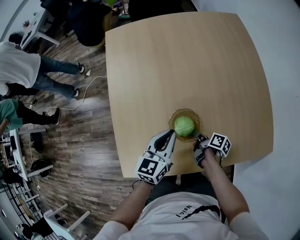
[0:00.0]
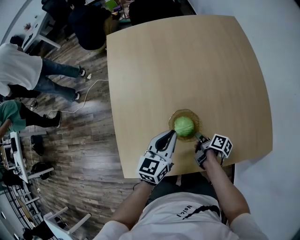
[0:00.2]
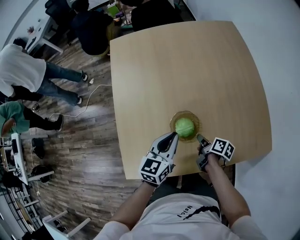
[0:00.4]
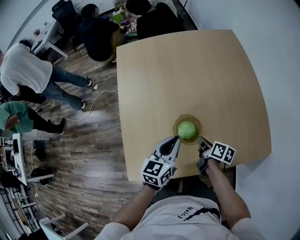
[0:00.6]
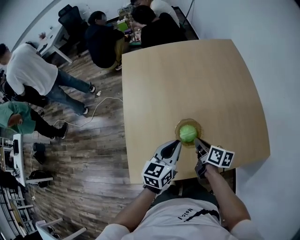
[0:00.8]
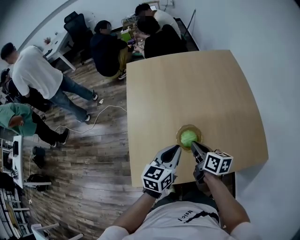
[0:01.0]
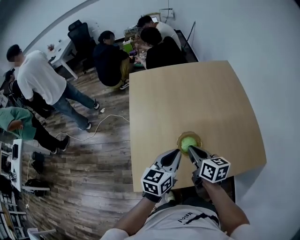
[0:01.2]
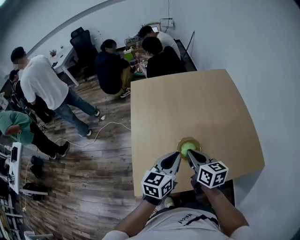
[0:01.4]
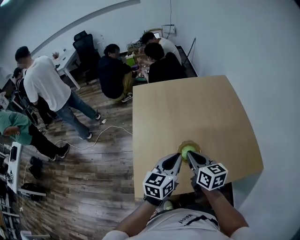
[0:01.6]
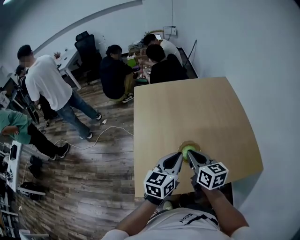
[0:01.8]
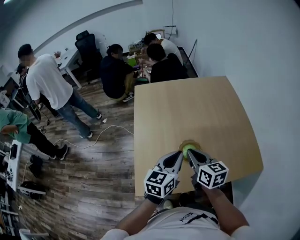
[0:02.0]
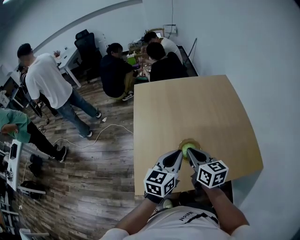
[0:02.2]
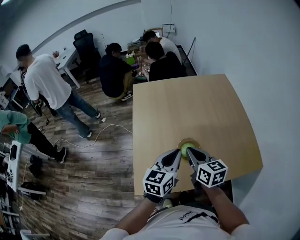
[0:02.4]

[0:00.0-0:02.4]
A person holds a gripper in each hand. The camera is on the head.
0:00.0 to 0:01.2: The left gripper heads upward, covering some 10 cm.
0:01.2 to 0:02.4: The left gripper travels upward by roughly 5 cm.

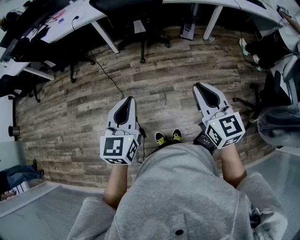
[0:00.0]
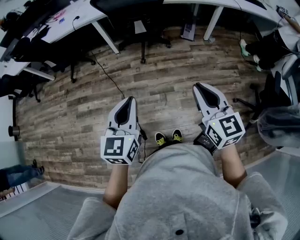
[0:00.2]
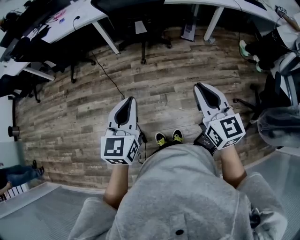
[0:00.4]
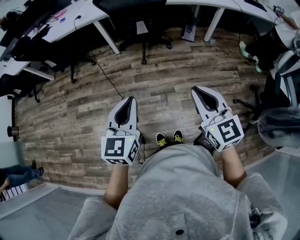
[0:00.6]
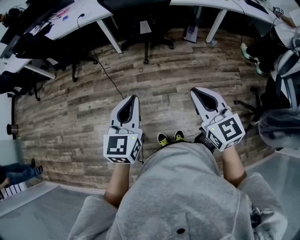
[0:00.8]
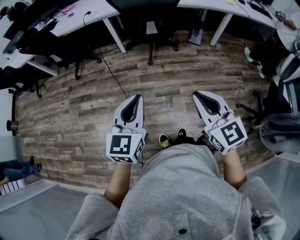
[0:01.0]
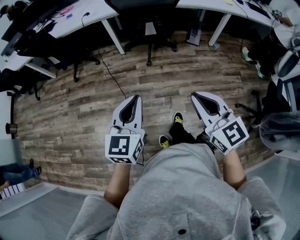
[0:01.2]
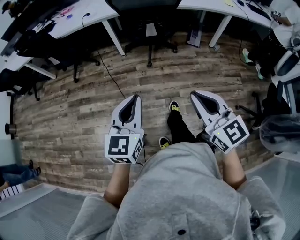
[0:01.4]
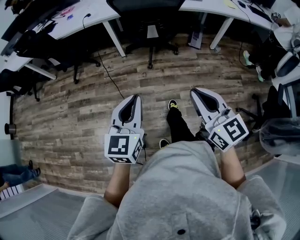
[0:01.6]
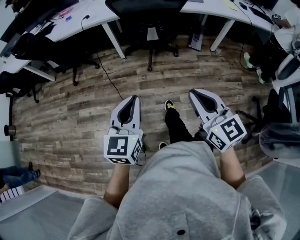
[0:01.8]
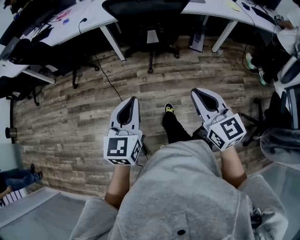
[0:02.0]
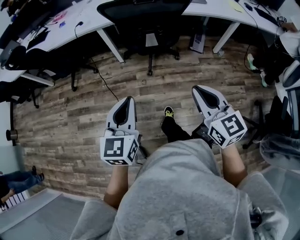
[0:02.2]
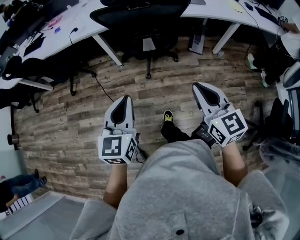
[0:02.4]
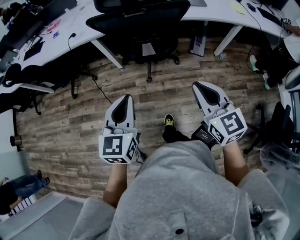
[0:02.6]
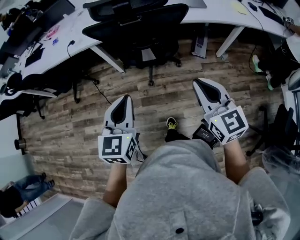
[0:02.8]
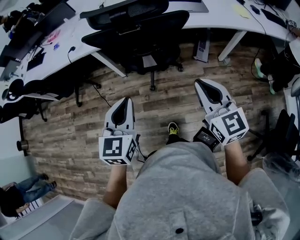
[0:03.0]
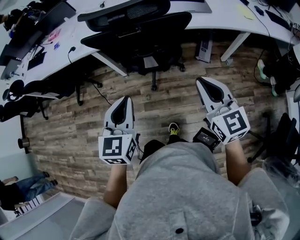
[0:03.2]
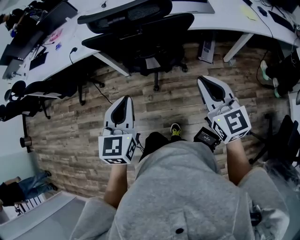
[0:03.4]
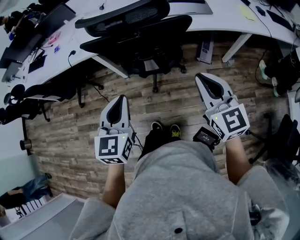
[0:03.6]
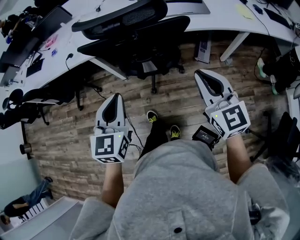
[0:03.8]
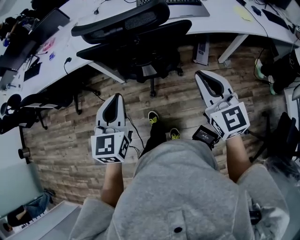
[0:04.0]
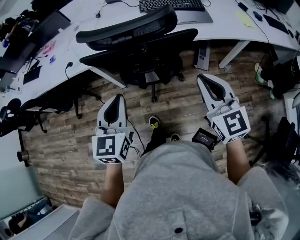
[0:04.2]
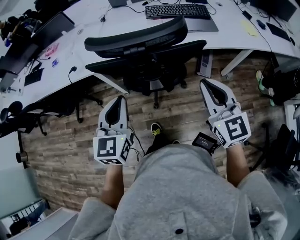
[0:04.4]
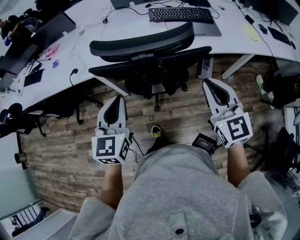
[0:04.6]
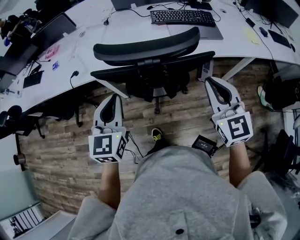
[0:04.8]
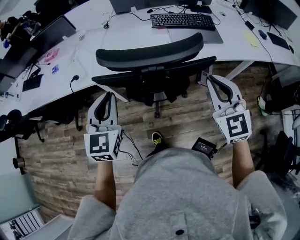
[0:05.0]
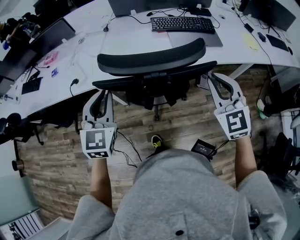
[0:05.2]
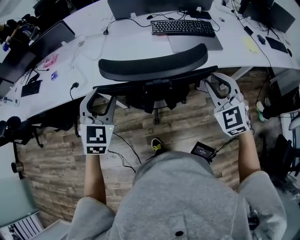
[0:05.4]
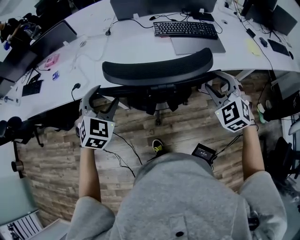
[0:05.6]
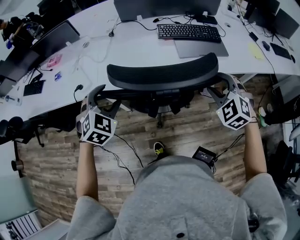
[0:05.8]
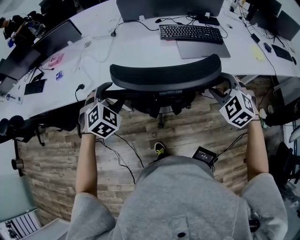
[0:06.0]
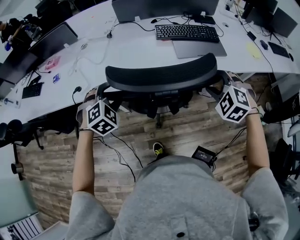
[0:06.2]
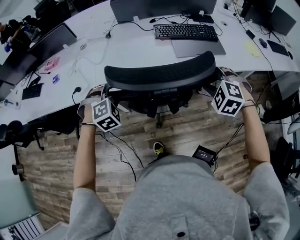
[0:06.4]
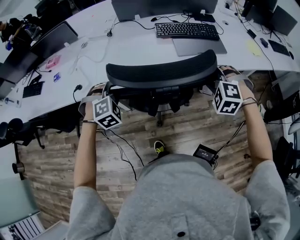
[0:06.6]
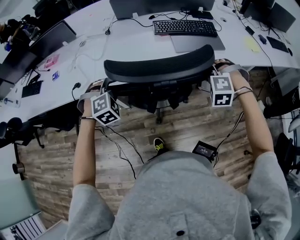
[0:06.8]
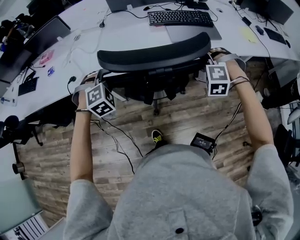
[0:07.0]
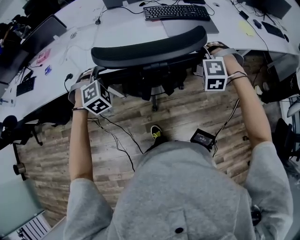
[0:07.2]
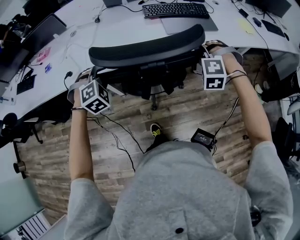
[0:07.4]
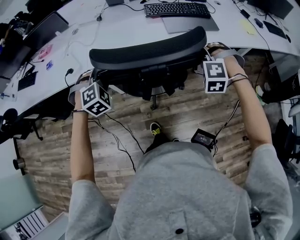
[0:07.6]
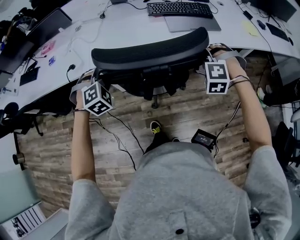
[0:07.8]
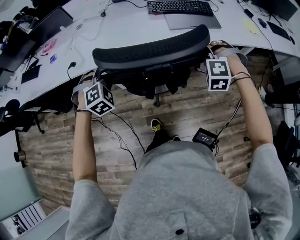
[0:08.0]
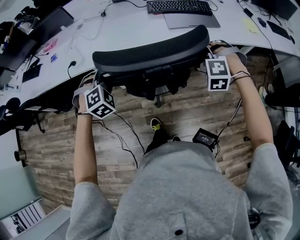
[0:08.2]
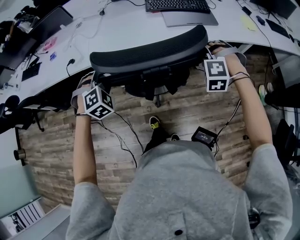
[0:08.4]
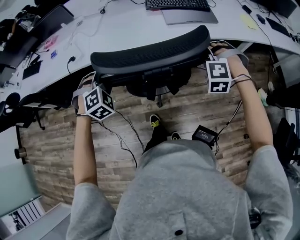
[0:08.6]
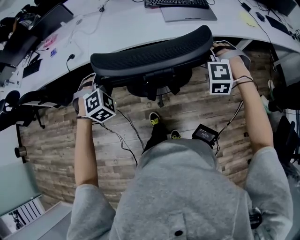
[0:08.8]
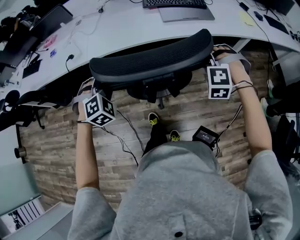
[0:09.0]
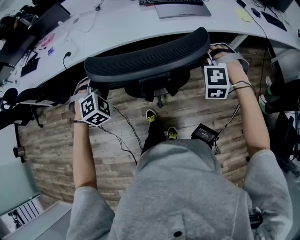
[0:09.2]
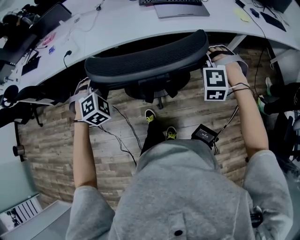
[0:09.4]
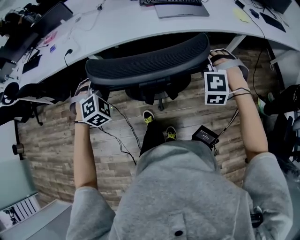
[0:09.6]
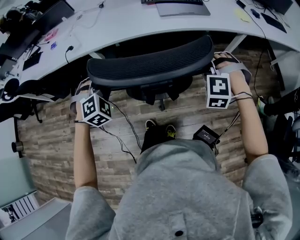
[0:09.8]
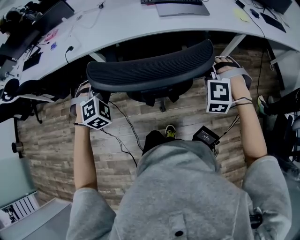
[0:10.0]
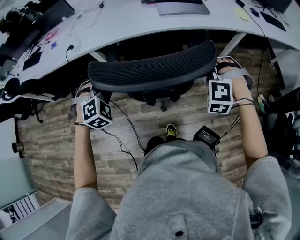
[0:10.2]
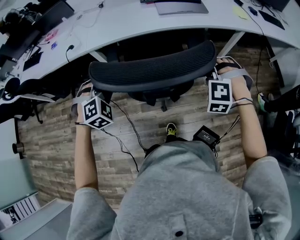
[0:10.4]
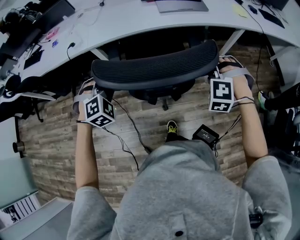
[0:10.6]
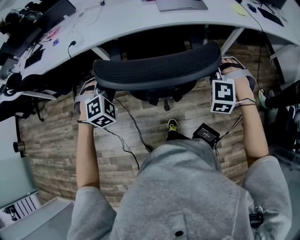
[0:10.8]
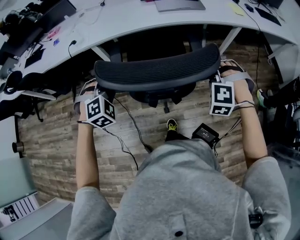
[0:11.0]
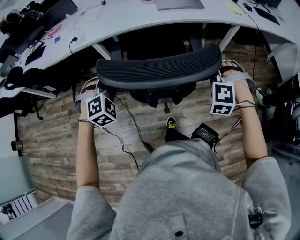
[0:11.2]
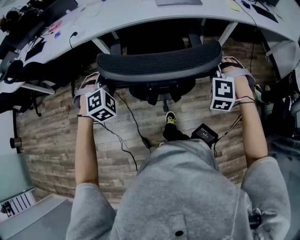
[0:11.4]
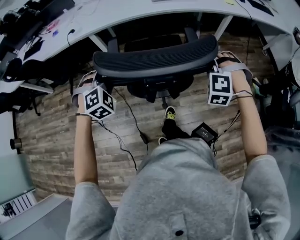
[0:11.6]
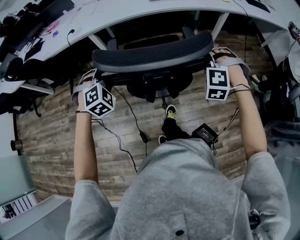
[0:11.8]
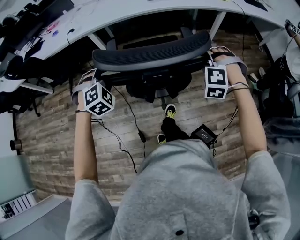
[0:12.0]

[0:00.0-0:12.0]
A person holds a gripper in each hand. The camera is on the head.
0:00.0 to 0:01.6: The left gripper shifts approximately 5 cm to the left. The right gripper shifts roughly 10 cm to the left.
0:01.6 to 0:03.0: The right gripper goes approximately 35 cm forward and to the right, while the left gripper moves forward, roughly 35 cm.
0:03.0 to 0:04.4: Both grippers travel together forward, roughly 15 cm.
0:04.4 to 0:06.0: The right gripper moves forward, approximately 15 cm, tilts its fingers roughly 30 degrees downward, and opens its fingers, while the left gripper heads forward and to the left, covering roughly 20 cm, twists approximately 50 degrees clockwise, seen from behind, and opens its fingers.
0:06.0 to 0:07.6: The right gripper is displaced downward by some 5 cm, swivels roughly 40 degrees, and closes up, while the left gripper closes up.
0:07.6 to 0:09.0: Both grippers move backward and to the right, about 15 cm.
0:09.0 to 0:10.4: The grippers both shift backward by some 10 cm.
0:10.4 to 0:12.0: The grippers both shift backward by roughly 20 cm.

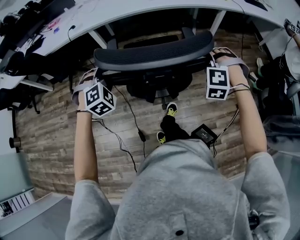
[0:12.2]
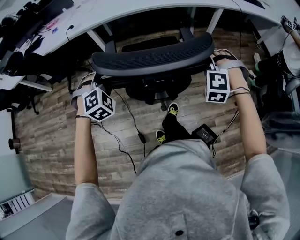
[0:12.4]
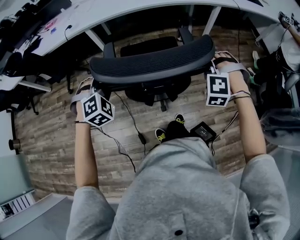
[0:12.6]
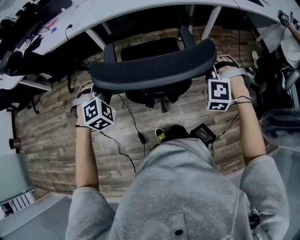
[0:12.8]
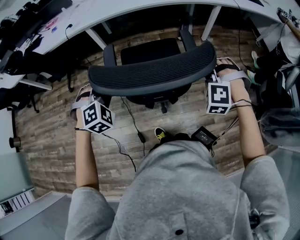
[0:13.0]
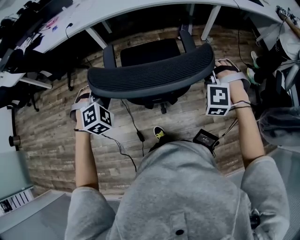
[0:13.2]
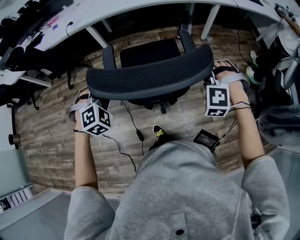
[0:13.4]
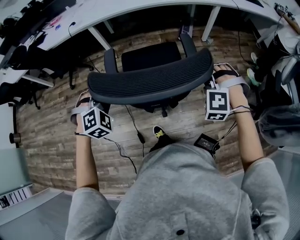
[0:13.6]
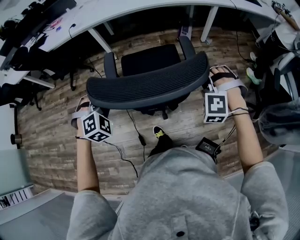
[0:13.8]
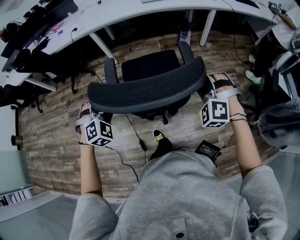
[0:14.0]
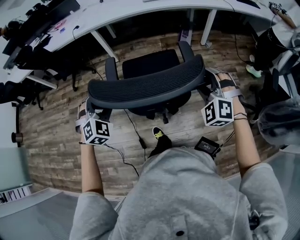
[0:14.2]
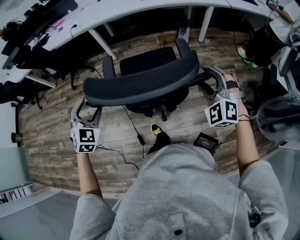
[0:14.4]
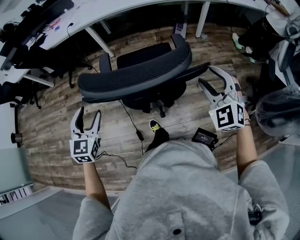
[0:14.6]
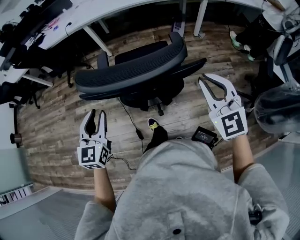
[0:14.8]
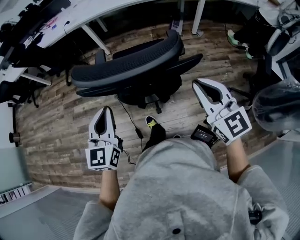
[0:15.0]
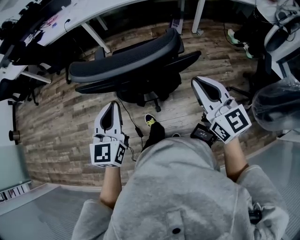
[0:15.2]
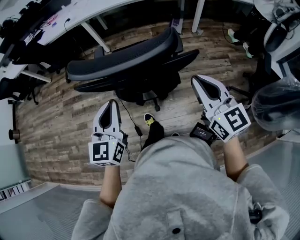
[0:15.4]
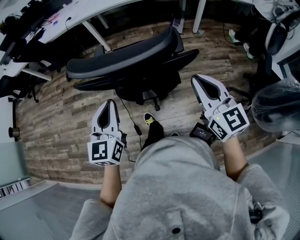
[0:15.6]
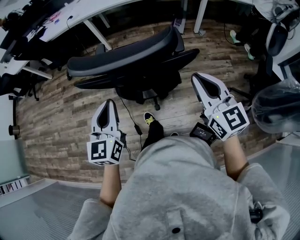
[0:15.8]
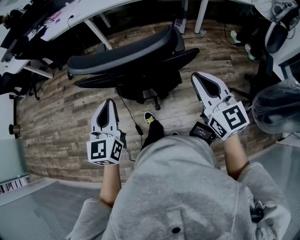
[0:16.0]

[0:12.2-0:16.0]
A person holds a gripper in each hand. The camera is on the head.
0:12.2 to 0:13.4: Both grippers move backward, about 15 cm.
0:13.4 to 0:14.8: The right gripper heads backward and upward, covering some 20 cm, tips its fingers upward by roughly 30 degrees, and opens and closes again; the left gripper travels backward by about 20 cm, rotates around the line of its fingers by some 60 degrees, counterclockwise from behind, and opens and closes again.
0:14.8 to 0:16.0: The left gripper goes approximately 10 cm to the right, and closes up, while the right gripper turns by approximately 30 degrees.

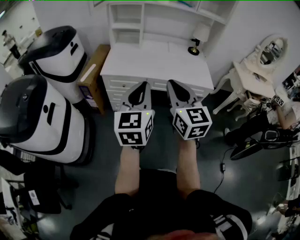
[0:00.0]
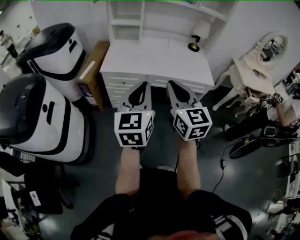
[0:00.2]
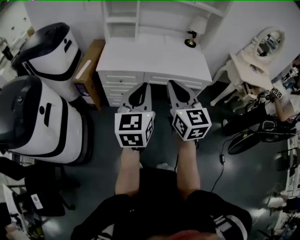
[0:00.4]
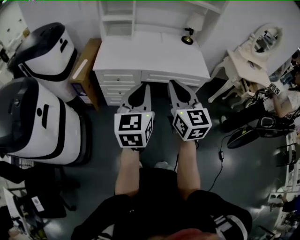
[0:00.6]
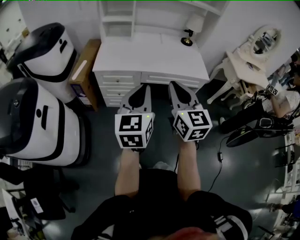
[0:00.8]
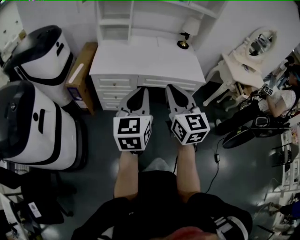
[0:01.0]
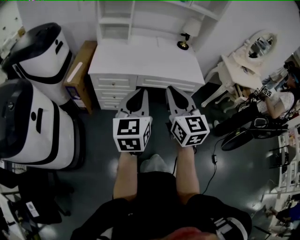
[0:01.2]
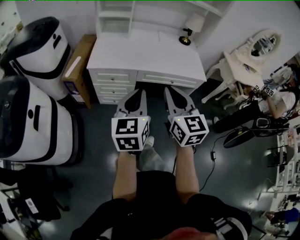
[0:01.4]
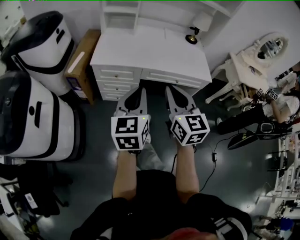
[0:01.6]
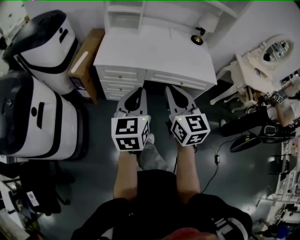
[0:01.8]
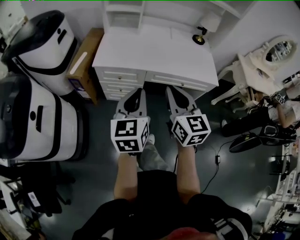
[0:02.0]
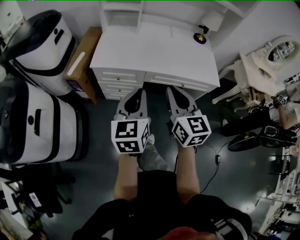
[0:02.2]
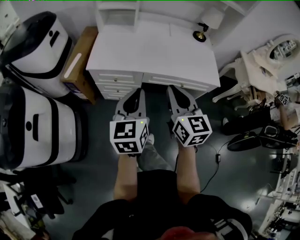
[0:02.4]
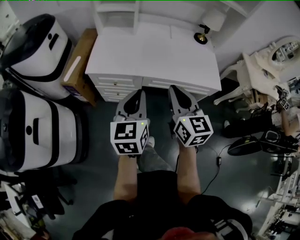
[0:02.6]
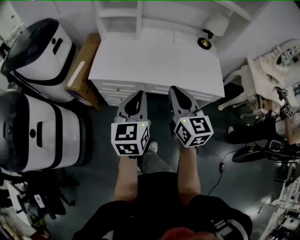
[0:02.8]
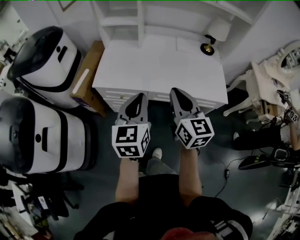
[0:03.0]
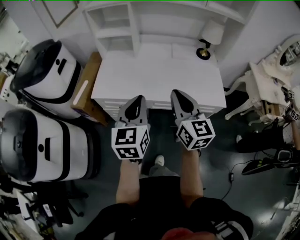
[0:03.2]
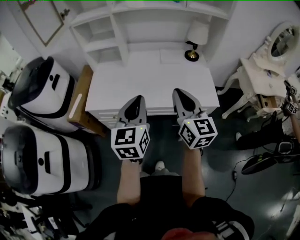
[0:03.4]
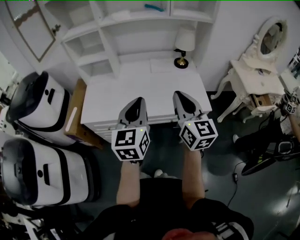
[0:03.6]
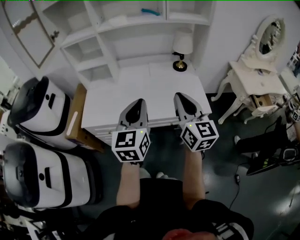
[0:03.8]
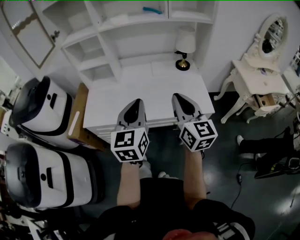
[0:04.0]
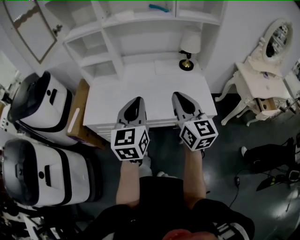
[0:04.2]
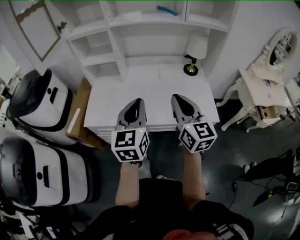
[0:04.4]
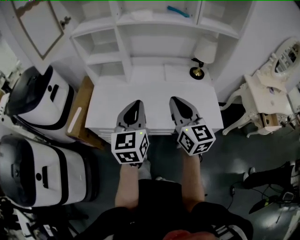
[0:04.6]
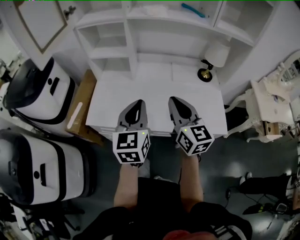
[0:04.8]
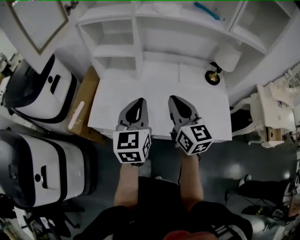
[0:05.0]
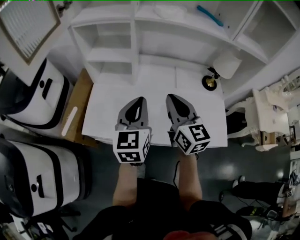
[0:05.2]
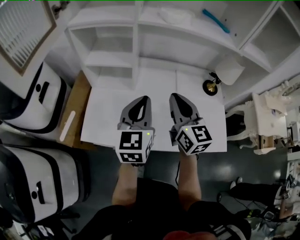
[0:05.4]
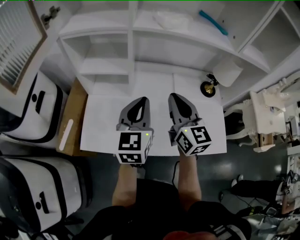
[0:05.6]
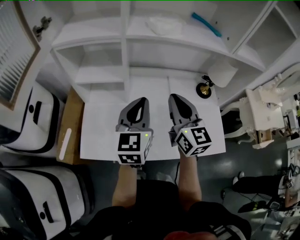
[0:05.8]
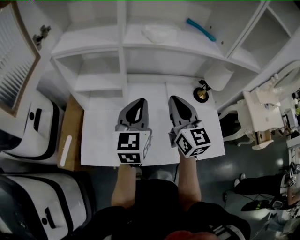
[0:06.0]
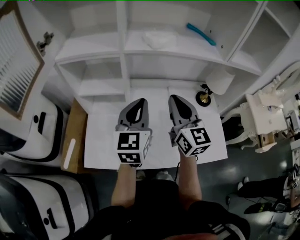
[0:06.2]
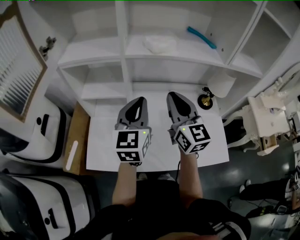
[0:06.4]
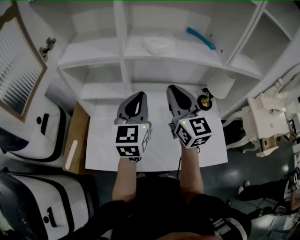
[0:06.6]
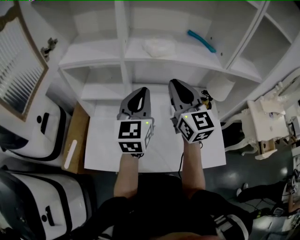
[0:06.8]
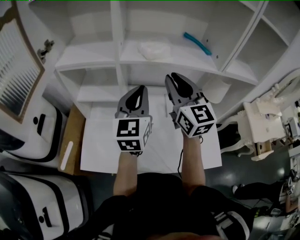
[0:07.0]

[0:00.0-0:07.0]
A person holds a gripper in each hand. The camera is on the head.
0:00.0 to 0:01.4: Both grippers travel together downward, roughly 5 cm.
0:01.4 to 0:02.8: Both grippers travel together forward, about 20 cm.
0:02.8 to 0:04.2: Both grippers travel together to the right, forward and upward, some 20 cm.
0:04.2 to 0:05.6: The left gripper goes some 30 cm forward, while the right gripper travels forward and to the left by roughly 35 cm.
0:05.6 to 0:07.0: Both grippers move upward and forward, some 15 cm.
